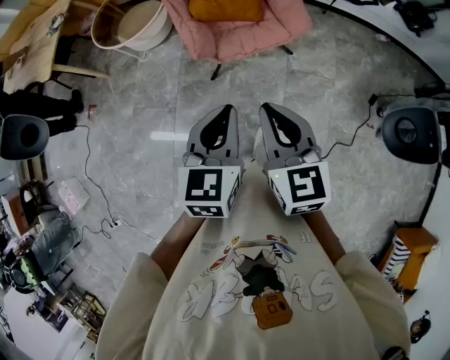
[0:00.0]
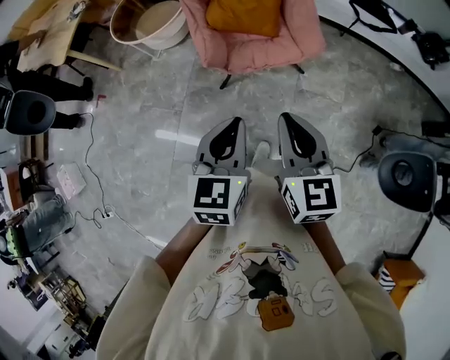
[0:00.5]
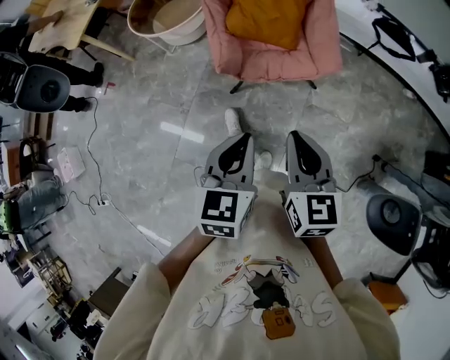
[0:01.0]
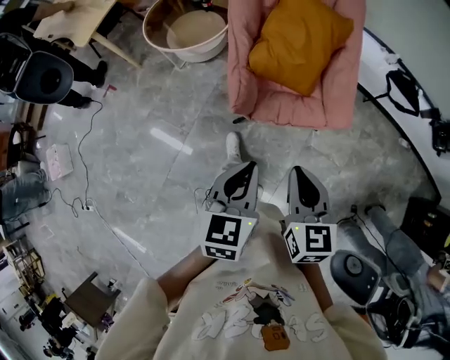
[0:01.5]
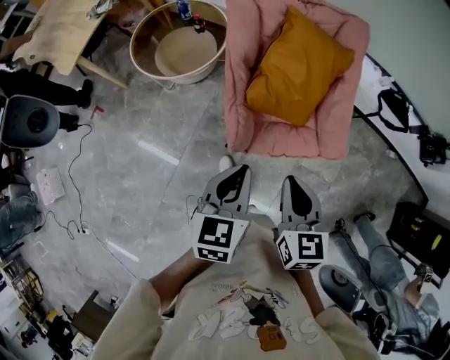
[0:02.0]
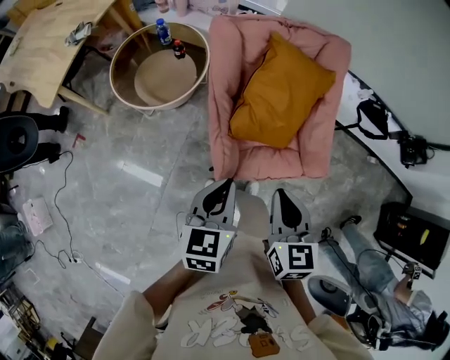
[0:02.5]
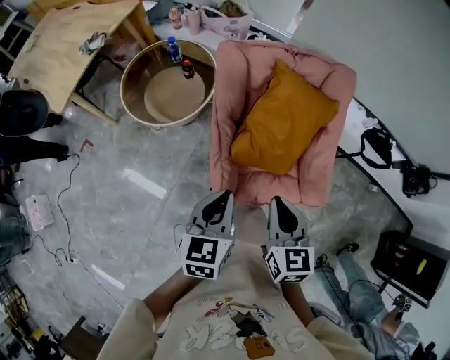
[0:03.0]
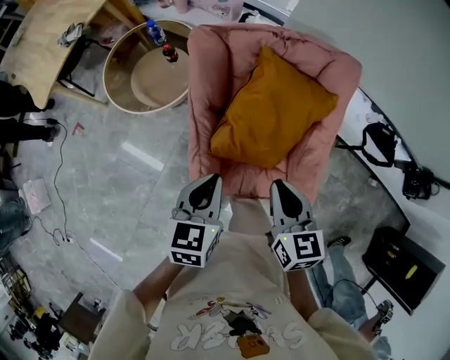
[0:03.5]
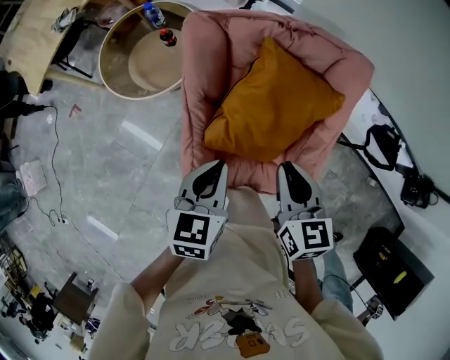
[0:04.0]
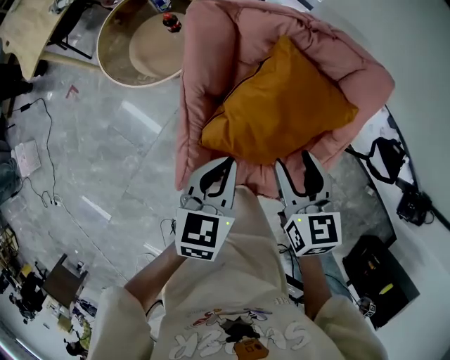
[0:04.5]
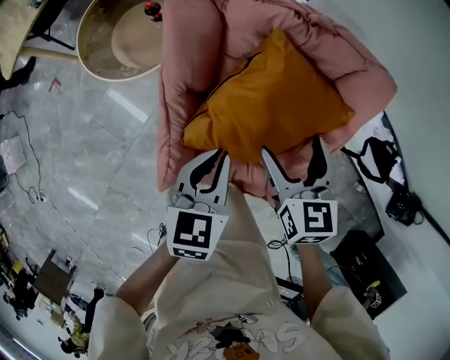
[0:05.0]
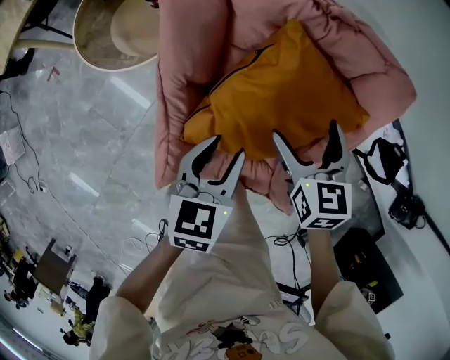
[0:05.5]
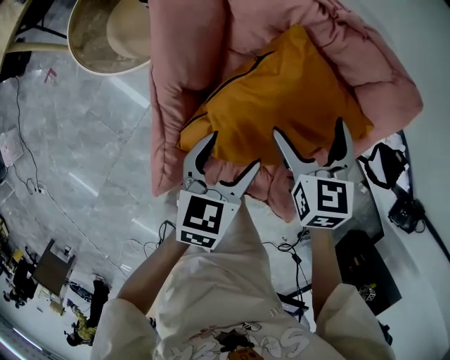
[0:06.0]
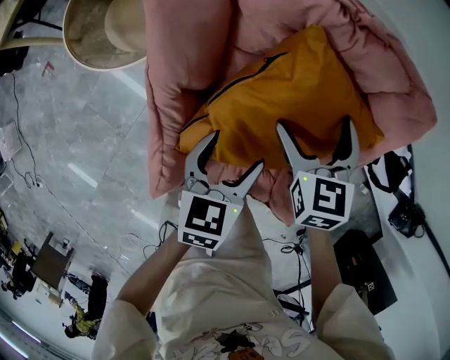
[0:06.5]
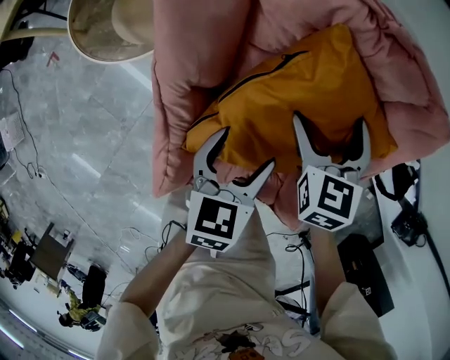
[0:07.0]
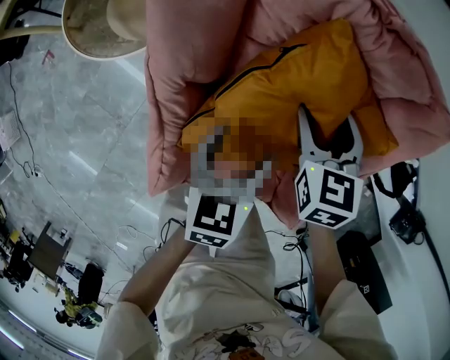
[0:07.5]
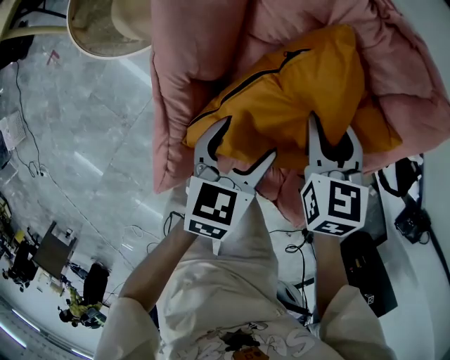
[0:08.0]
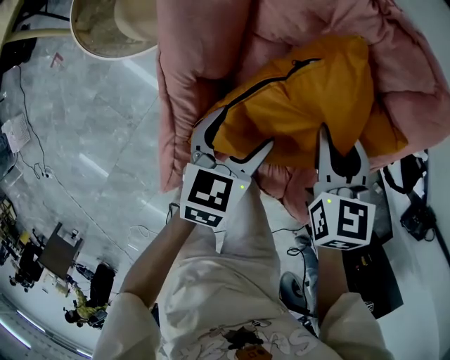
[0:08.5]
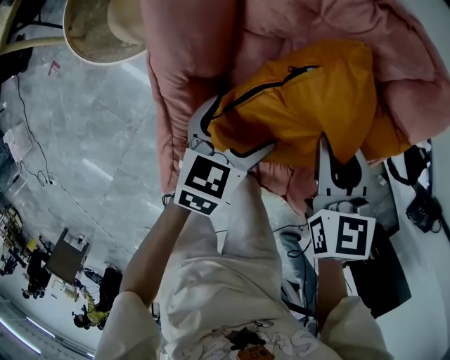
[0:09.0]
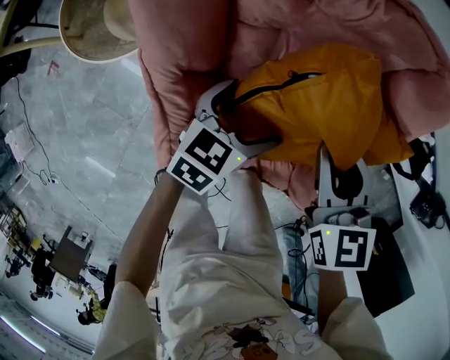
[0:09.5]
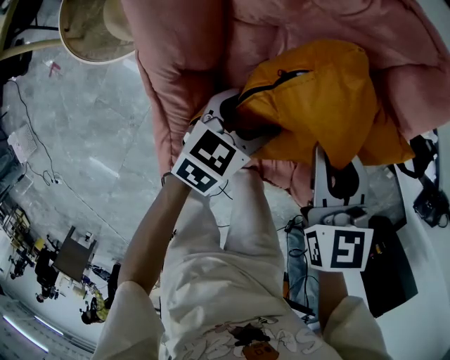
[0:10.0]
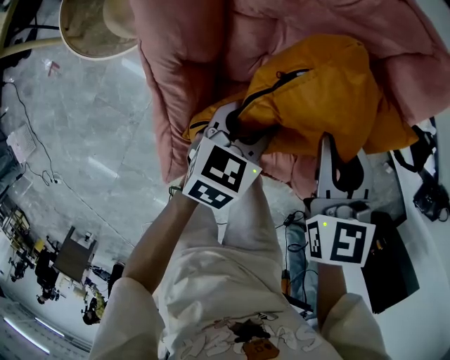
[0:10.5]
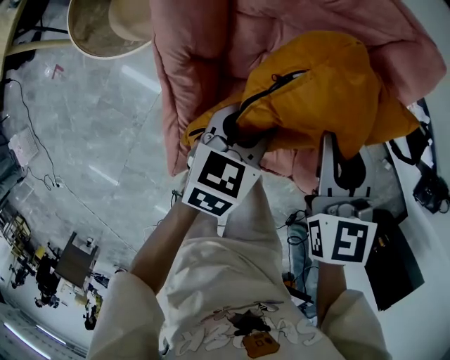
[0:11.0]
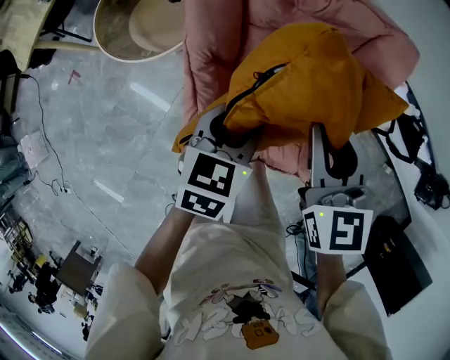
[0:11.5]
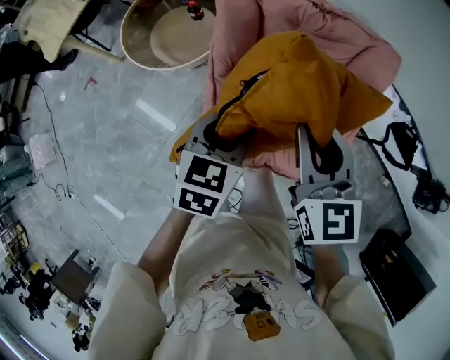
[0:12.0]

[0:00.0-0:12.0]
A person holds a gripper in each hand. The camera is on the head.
0:00.0 to 0:02.0: Both grippers travel together forward, approximately 30 cm.
0:02.0 to 0:04.0: The two grippers go some 30 cm forward.
0:04.0 to 0:06.0: The right gripper goes approximately 25 cm forward and downward, and opens; the left gripper shifts some 20 cm downward, forward and to the right, and opens up.
0:06.0 to 0:08.0: The two grippers go approximately 5 cm downward. The right gripper closes up.
0:08.0 to 0:10.0: The right gripper heads backward and upward, covering some 10 cm; the left gripper shifts by about 5 cm, and changes its angle by some 30 degrees.
0:10.0 to 0:12.0: The two grippers go roughly 30 cm upward and backward. The right gripper swivels some 20 degrees. Meanwhile the left gripper changes its angle by roughly 20 degrees.

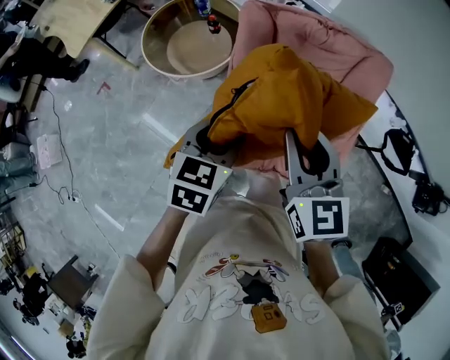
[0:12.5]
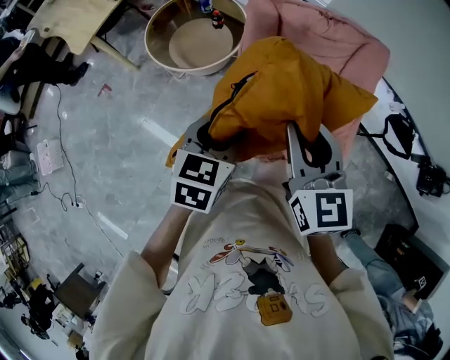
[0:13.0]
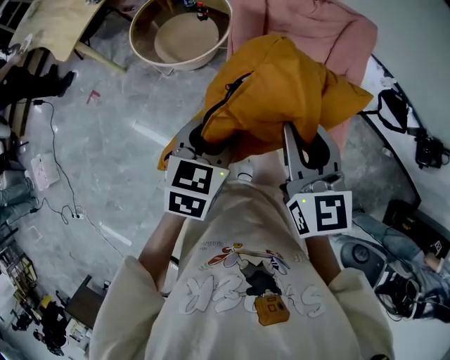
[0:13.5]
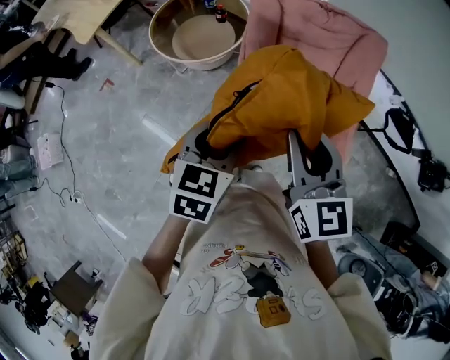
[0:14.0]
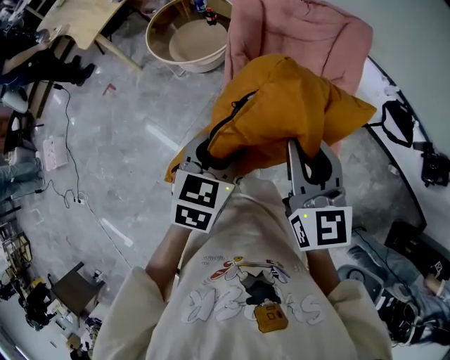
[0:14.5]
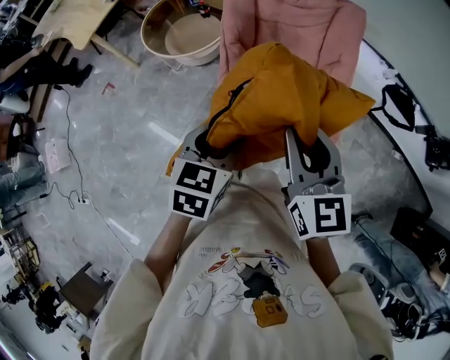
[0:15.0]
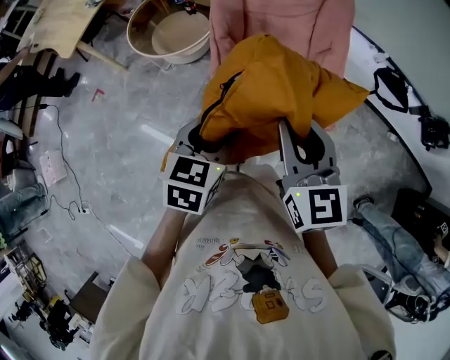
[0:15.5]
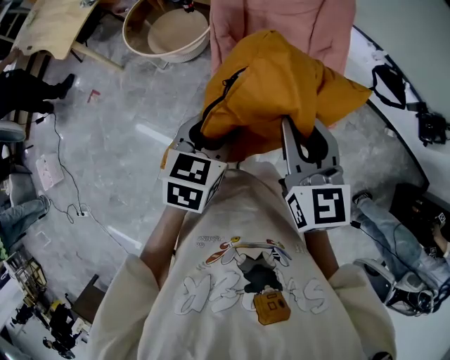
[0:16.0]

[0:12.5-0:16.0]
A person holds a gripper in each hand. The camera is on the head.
0:12.5 to 0:14.5: Both grippers travel together backward, roughly 20 cm.
0:14.5 to 0:16.0: The grippers make only small movements.

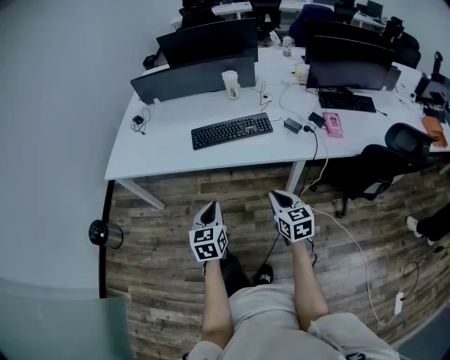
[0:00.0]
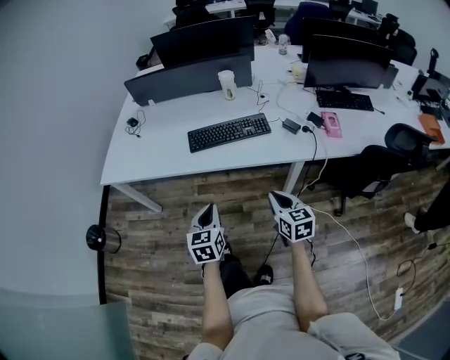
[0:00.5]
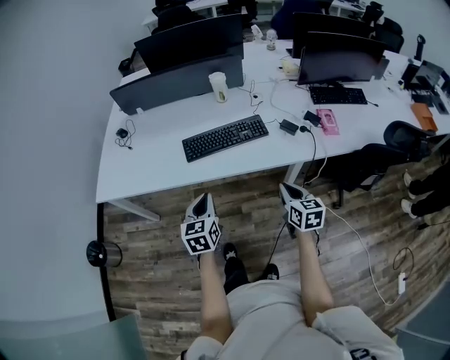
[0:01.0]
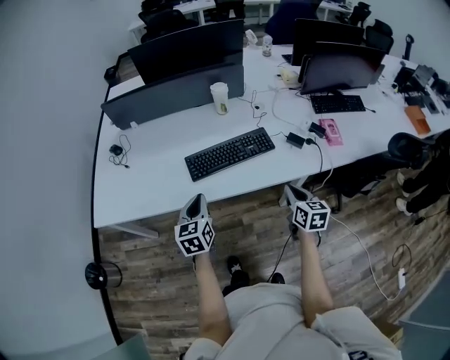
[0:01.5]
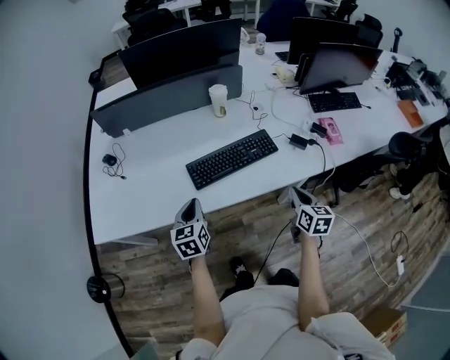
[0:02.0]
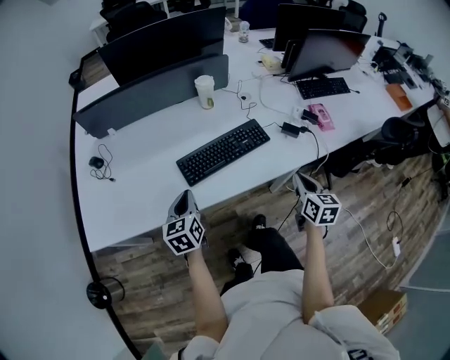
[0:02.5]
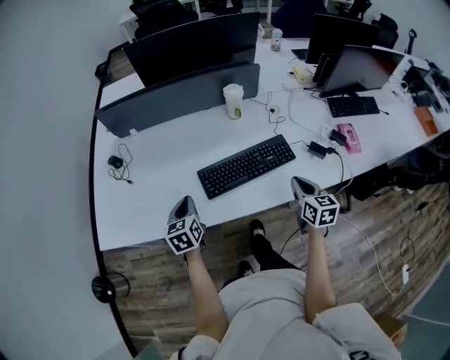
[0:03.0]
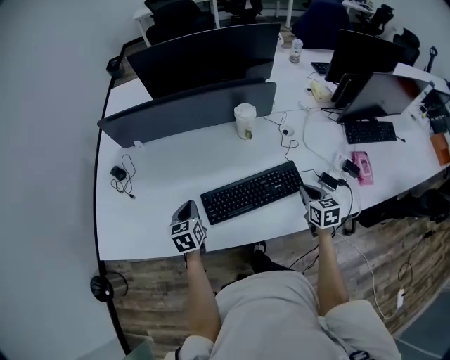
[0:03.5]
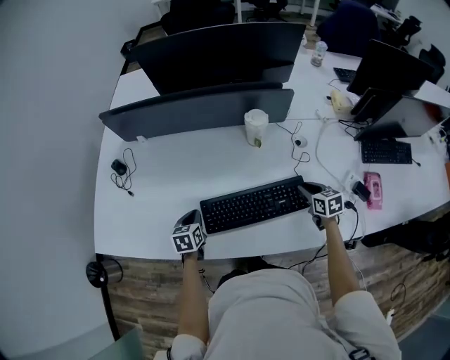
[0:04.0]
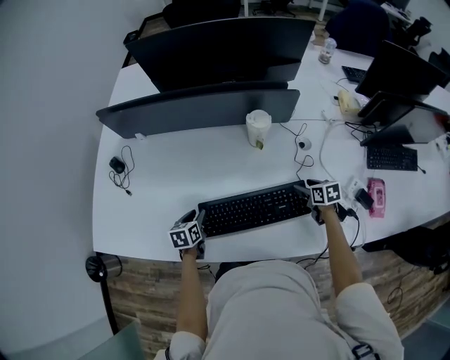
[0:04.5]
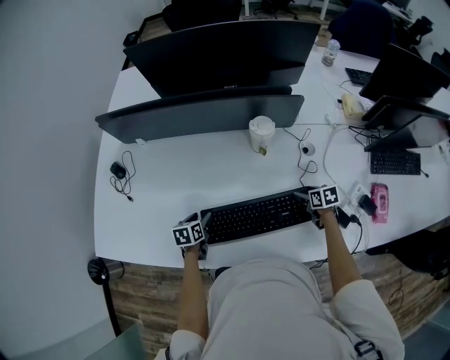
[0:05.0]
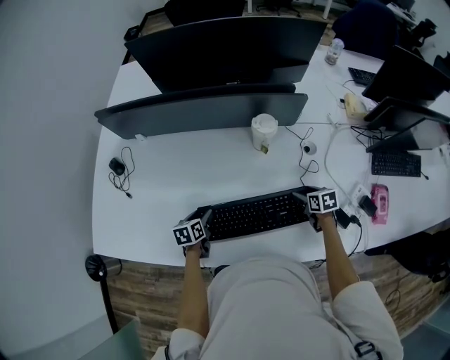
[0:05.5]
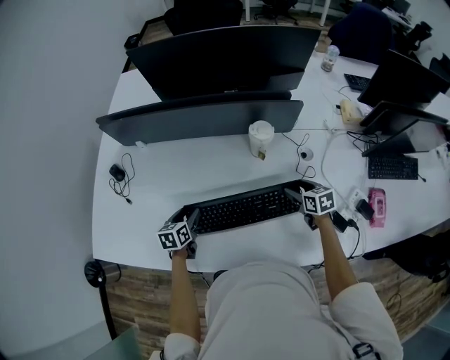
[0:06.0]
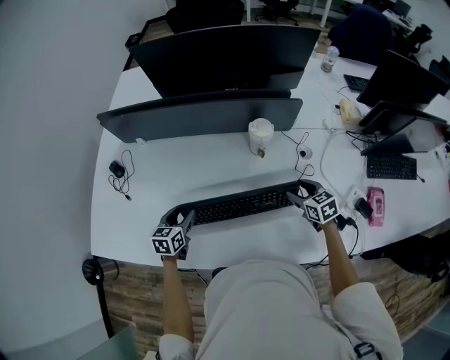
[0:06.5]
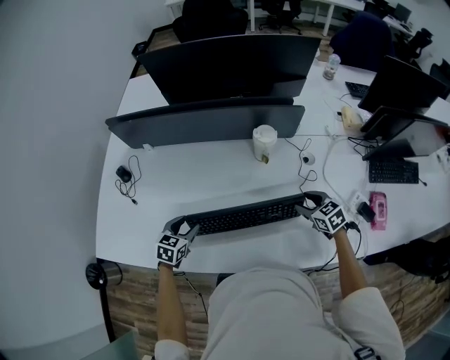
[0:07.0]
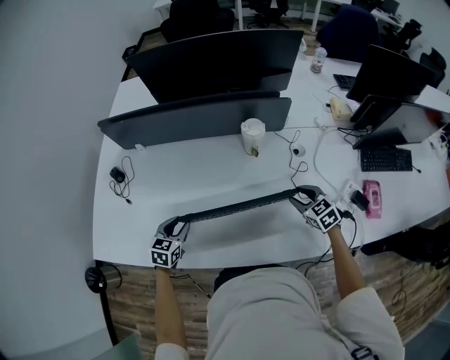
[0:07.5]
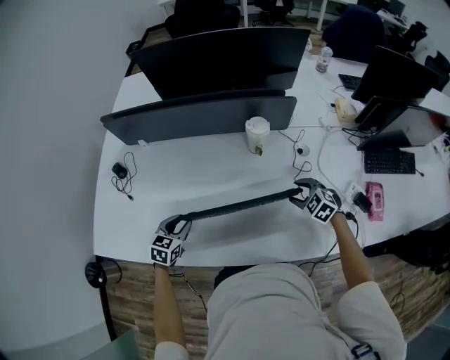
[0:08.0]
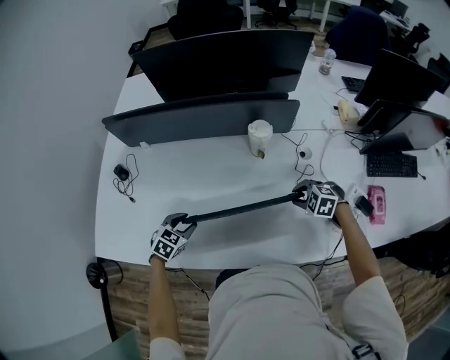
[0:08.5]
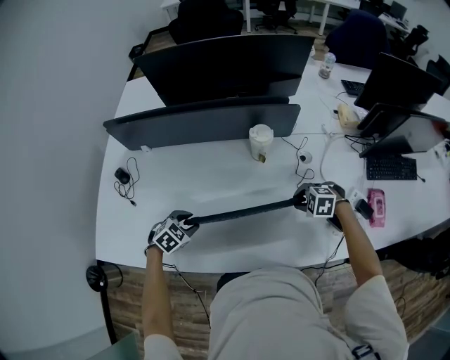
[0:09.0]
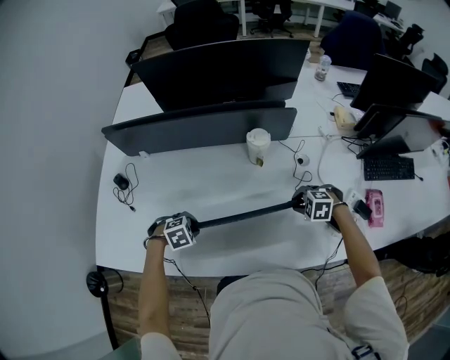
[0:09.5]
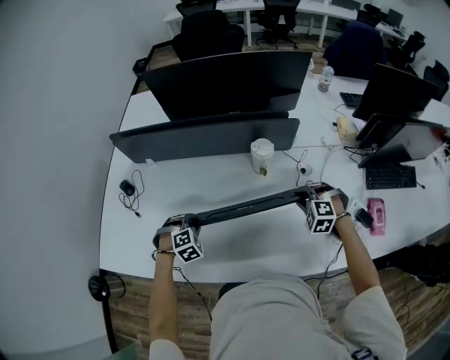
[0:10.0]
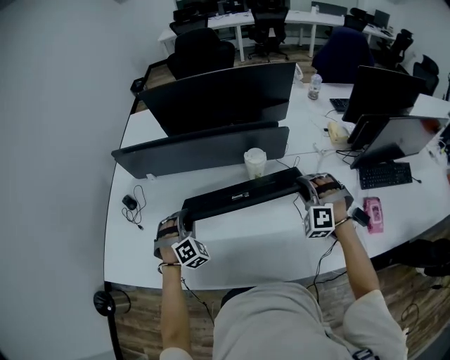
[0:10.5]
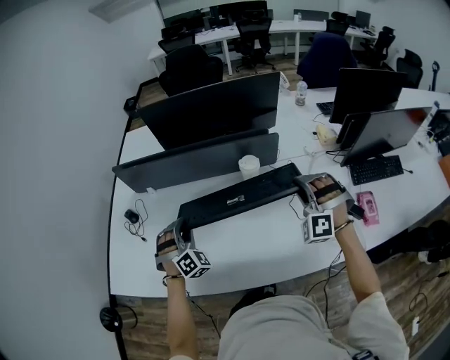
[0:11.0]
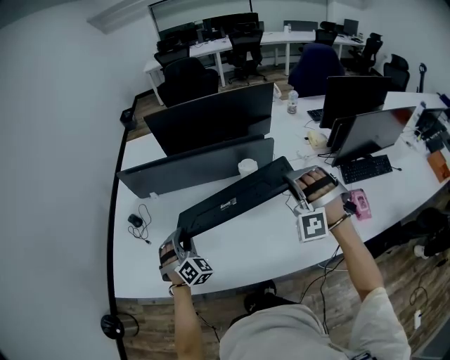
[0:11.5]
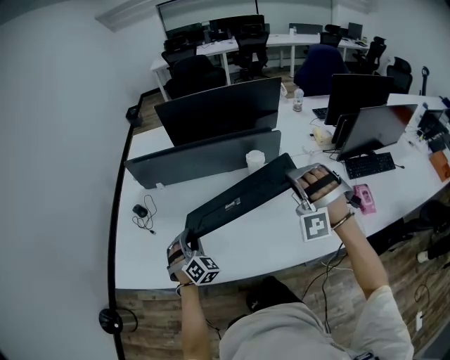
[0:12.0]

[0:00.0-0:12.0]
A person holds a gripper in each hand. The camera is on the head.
0:00.0 to 0:02.0: The left gripper shifts roughly 35 cm forward and to the left; the right gripper moves forward, about 20 cm, and turns by roughly 30 degrees.
0:02.0 to 0:04.0: Both grippers travel together forward and downward, about 30 cm. The right gripper changes its angle by approximately 40 degrees, while the left gripper changes its angle by some 20 degrees.
0:04.0 to 0:06.0: The two grippers go approximately 10 cm forward. The right gripper goes downward and returns, approximately 10 cm each way, and opens; the left gripper opens.
0:06.0 to 0:08.0: The grippers both shift backward by roughly 5 cm. The right gripper rolls counterclockwise, seen from behind, by about 50 degrees; the left gripper swivels roughly 30 degrees, and closes its fingers.
0:08.0 to 0:10.0: The right gripper ends up roughly 5 cm from where it was, swivels approximately 30 degrees, and closes. Meanwhile the left gripper changes place by about 5 cm, and rolls clockwise, seen from behind, by approximately 50 degrees.
0:10.0 to 0:12.0: The left gripper is displaced upward, backward and to the left by approximately 20 cm, and tips its fingers upward by about 40 degrees. The right gripper travels upward by about 30 cm, and angles its fingers upward, by some 40 degrees.
